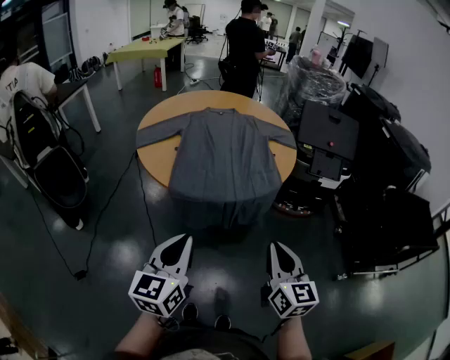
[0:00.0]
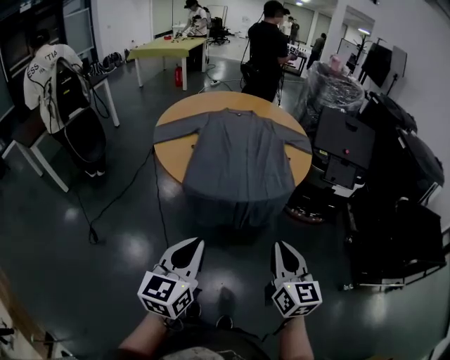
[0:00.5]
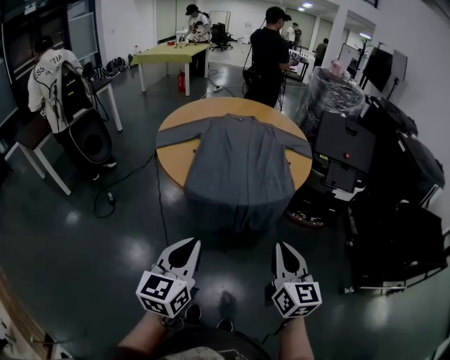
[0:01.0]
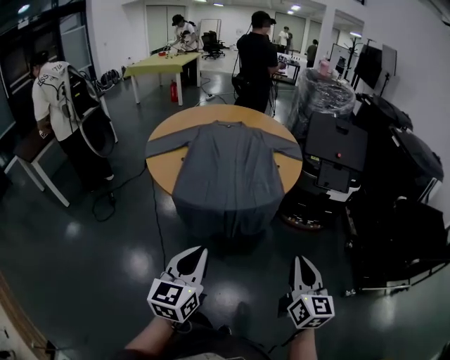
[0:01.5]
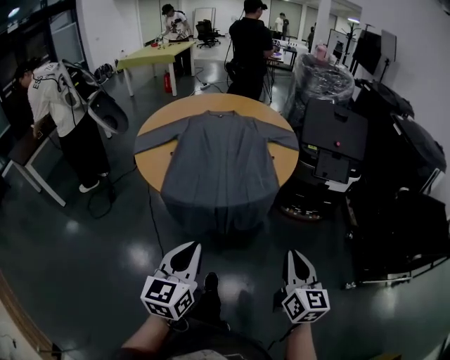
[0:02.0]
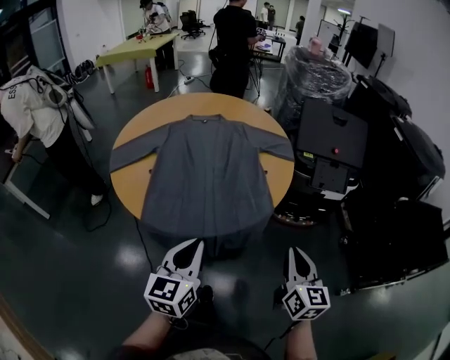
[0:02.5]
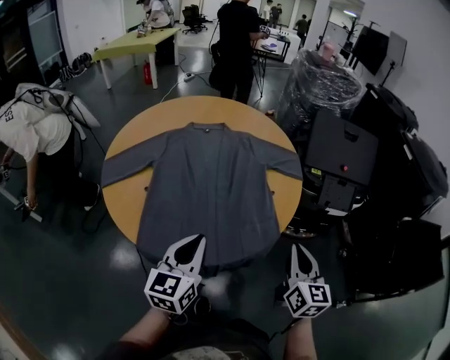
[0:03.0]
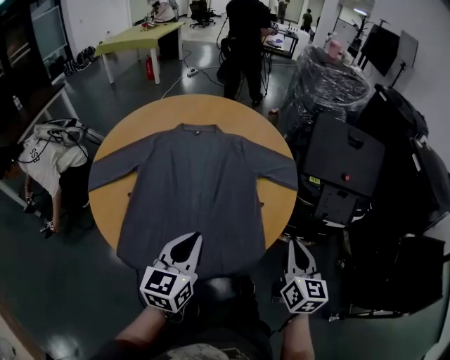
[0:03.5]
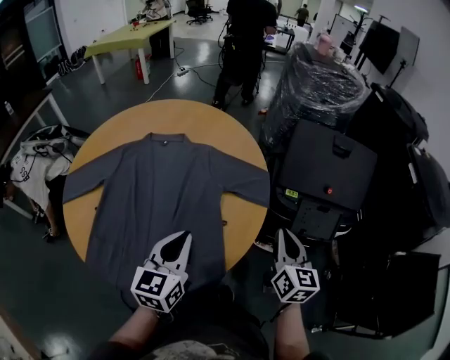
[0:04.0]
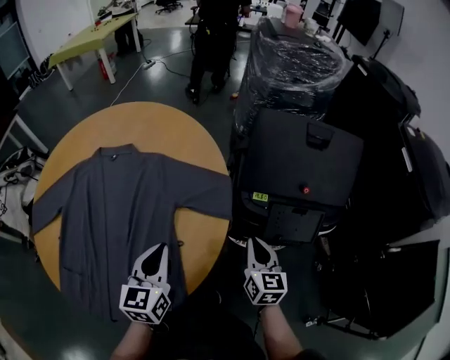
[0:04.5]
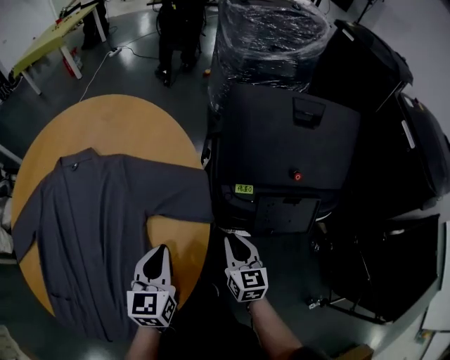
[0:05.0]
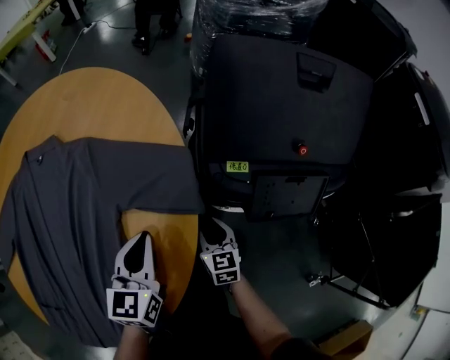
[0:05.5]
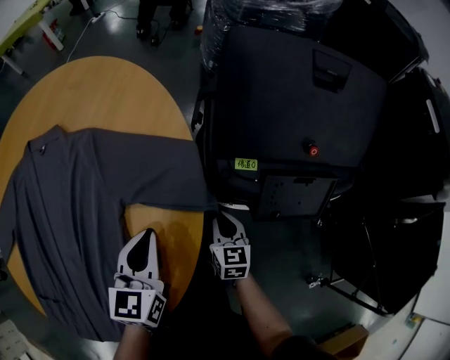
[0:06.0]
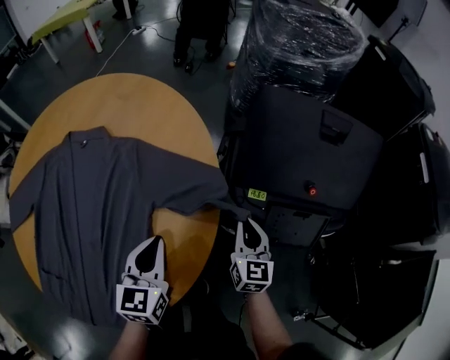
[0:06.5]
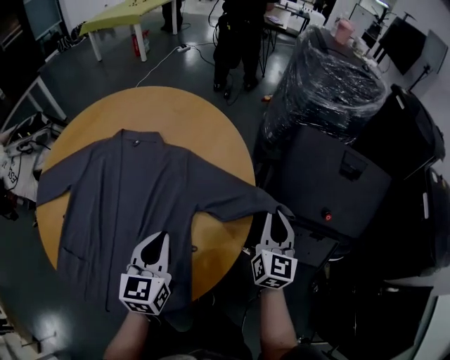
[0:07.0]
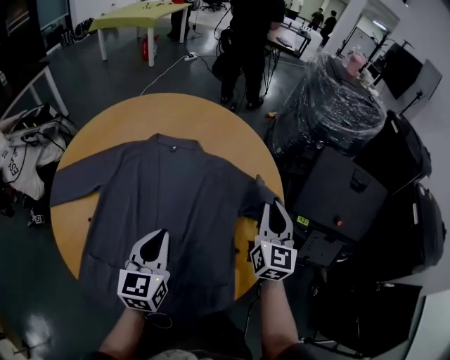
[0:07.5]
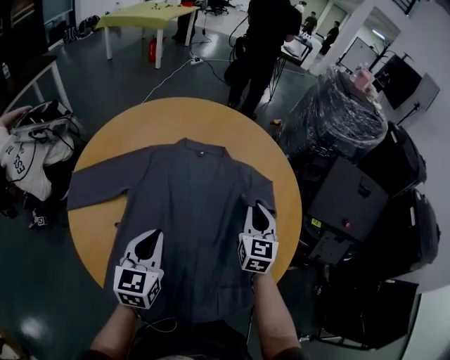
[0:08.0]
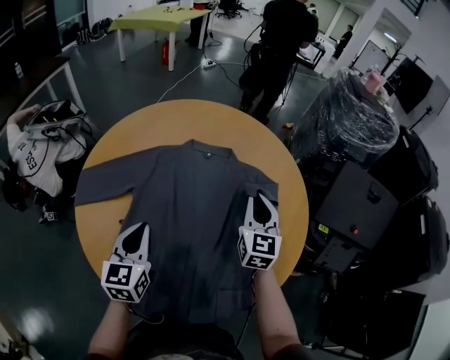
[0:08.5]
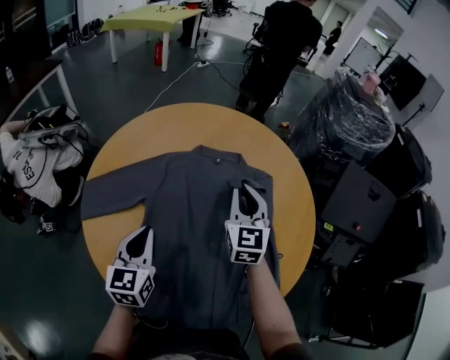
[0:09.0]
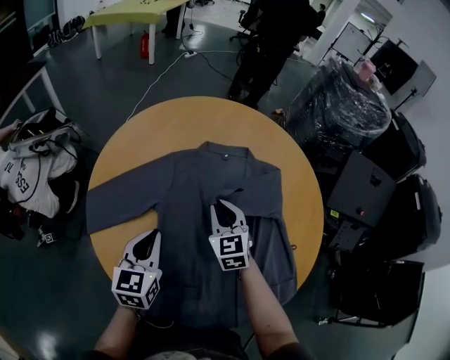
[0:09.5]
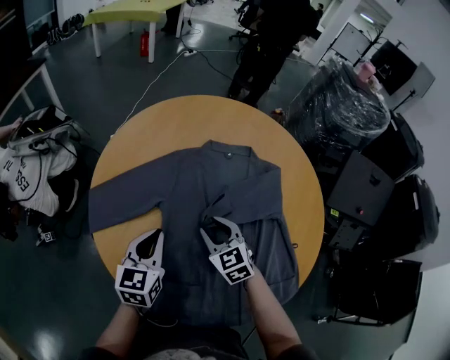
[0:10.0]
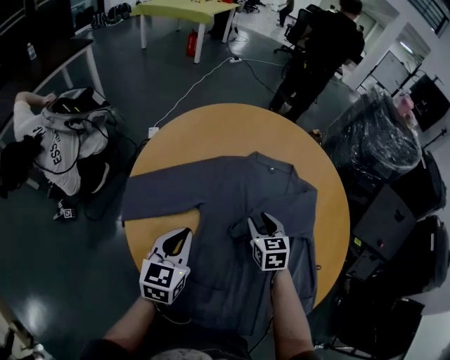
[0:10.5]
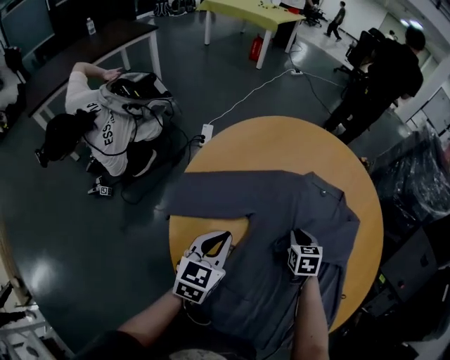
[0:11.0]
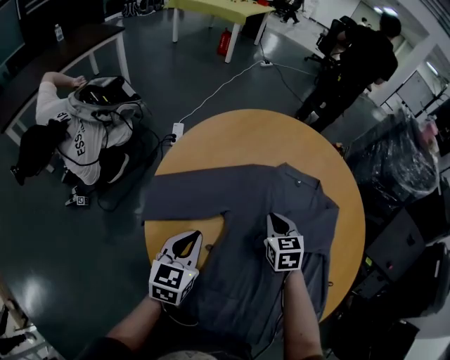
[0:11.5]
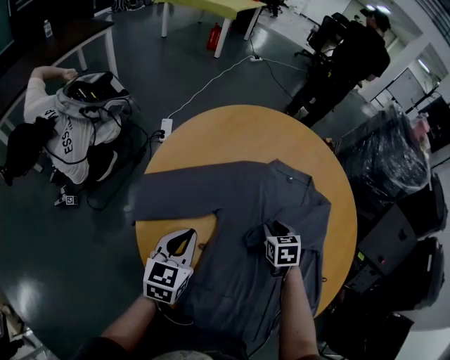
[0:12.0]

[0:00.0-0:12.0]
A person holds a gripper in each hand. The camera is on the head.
0:00.0 to 0:02.0: Both grippers move to the right, roughly 10 cm.
0:02.0 to 0:04.0: The pair of grippers is taken forward, roughly 50 cm.
0:04.0 to 0:06.0: The left gripper travels forward, downward and to the right by about 30 cm. Meanwhile the right gripper heads downward and forward, covering approximately 35 cm, turns by about 20 degrees, and opens, then closes once more.
0:06.0 to 0:08.0: The left gripper goes about 40 cm to the left. Meanwhile the right gripper is displaced to the left and upward by some 40 cm, and turns by about 30 degrees.
0:08.0 to 0:10.0: The right gripper goes approximately 25 cm to the left, changes its angle by approximately 30 degrees, and opens up. Meanwhile the left gripper heads to the left, covering approximately 15 cm.
0:10.0 to 0:12.0: The left gripper heads to the left, covering about 10 cm. The right gripper heads forward and downward, covering some 10 cm, swivels roughly 30 degrees, and closes, then opens again.

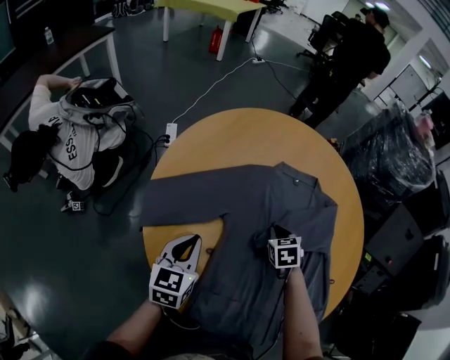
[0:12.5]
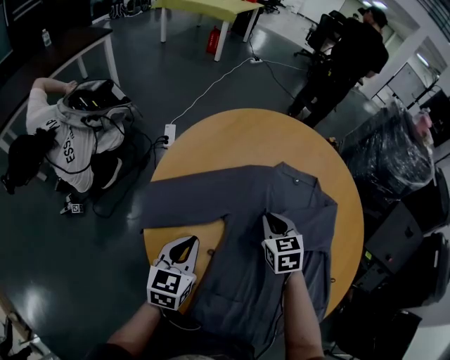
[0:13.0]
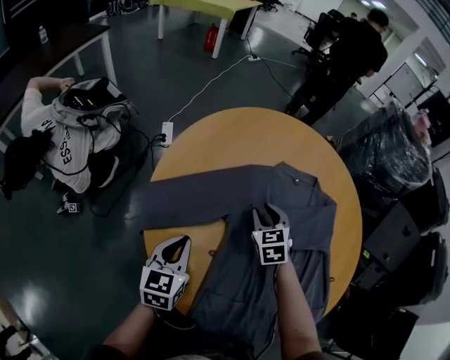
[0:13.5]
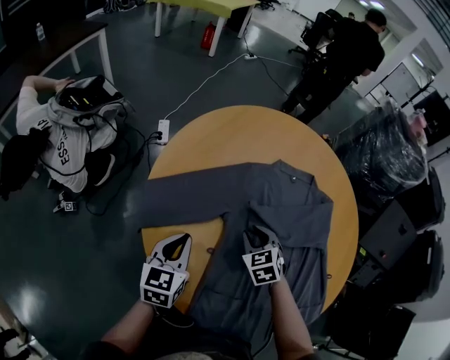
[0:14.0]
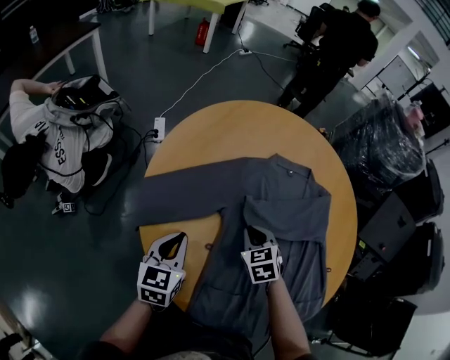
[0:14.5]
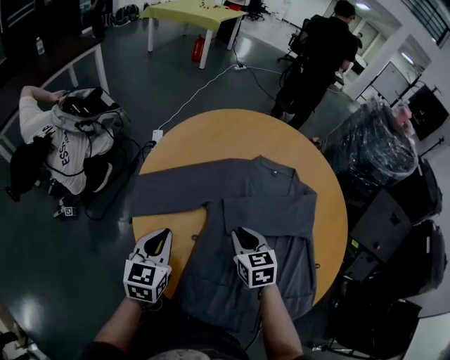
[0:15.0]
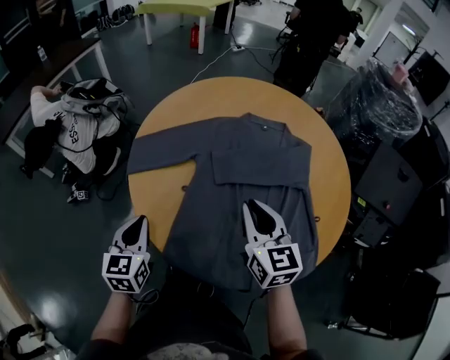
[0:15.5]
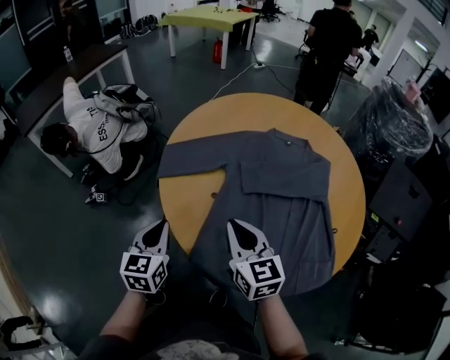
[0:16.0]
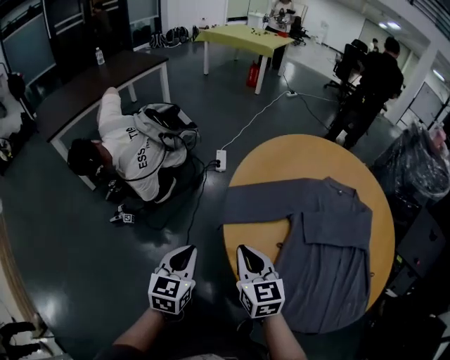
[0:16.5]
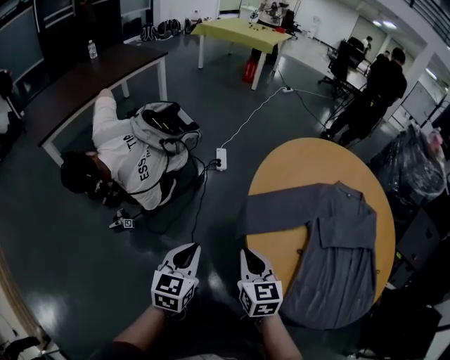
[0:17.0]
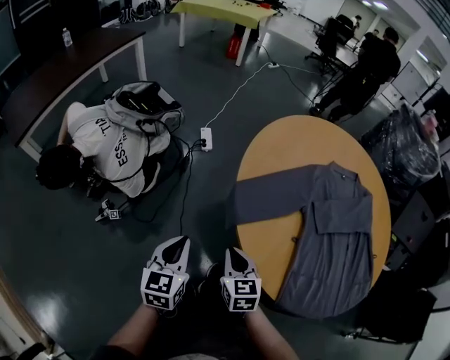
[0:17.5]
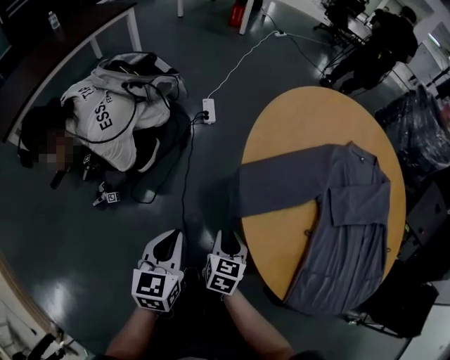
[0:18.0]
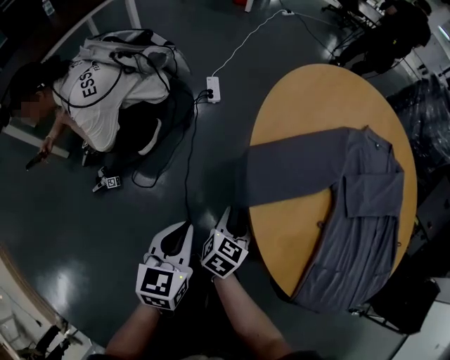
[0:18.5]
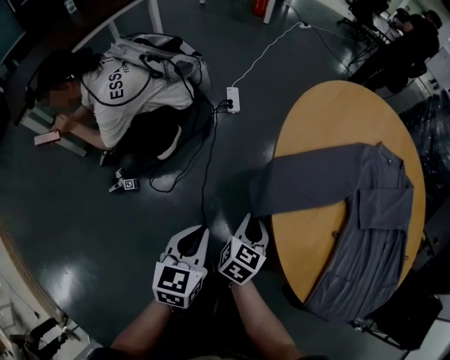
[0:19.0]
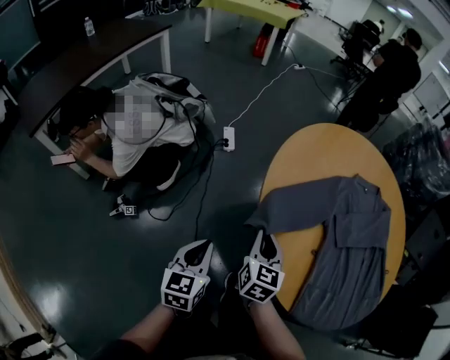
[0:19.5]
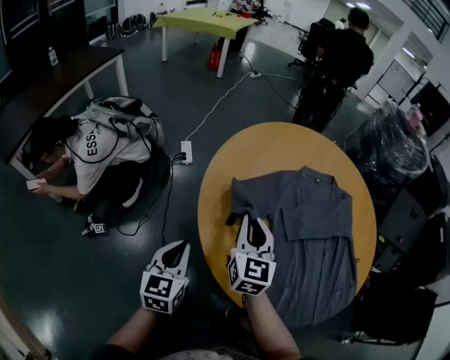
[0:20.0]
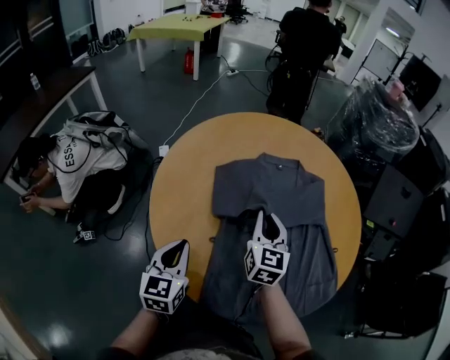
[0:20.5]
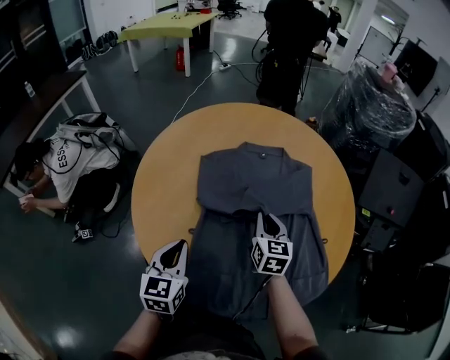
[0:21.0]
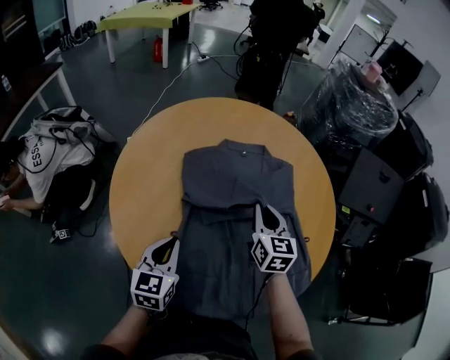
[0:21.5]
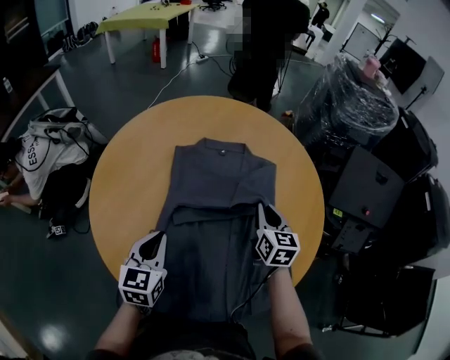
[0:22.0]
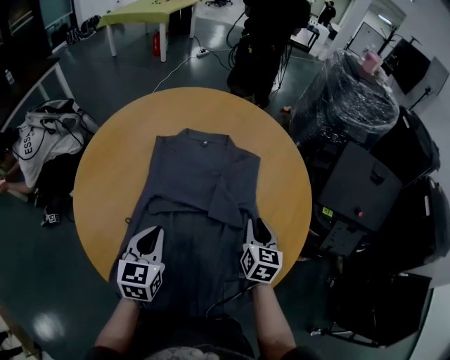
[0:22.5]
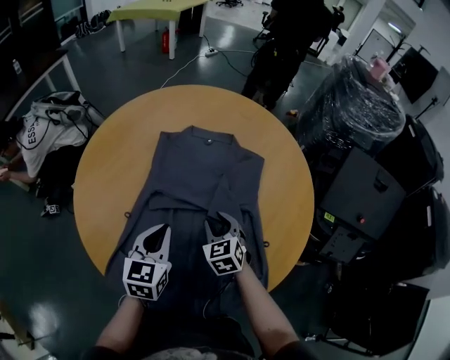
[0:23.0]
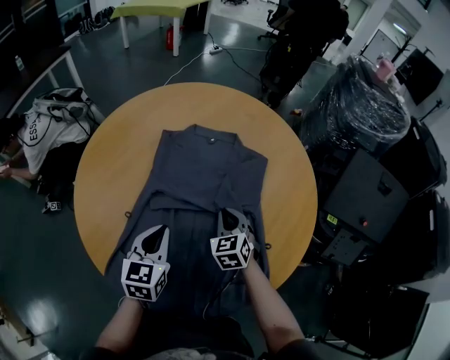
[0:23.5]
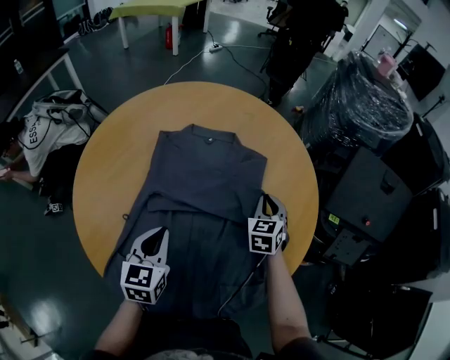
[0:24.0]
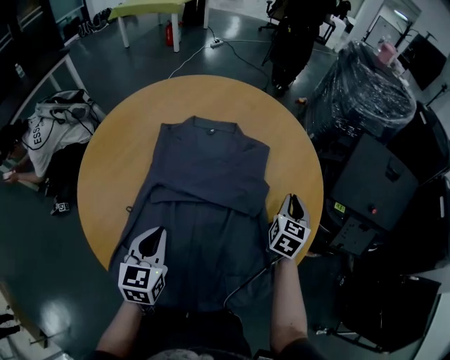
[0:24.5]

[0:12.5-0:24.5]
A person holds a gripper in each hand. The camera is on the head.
0:12.5 to 0:14.5: The right gripper heads to the left and backward, covering about 10 cm.
0:14.5 to 0:16.5: The left gripper goes about 25 cm to the left and backward. The right gripper goes some 35 cm to the left, backward and upward, and changes its angle by approximately 30 degrees.
0:16.5 to 0:18.5: The left gripper shifts by about 15 cm. The right gripper moves downward, roughly 25 cm, rotates approximately 50 degrees, and opens up.
0:18.5 to 0:20.5: The two grippers go roughly 40 cm to the right and upward. The right gripper turns by about 30 degrees.
0:20.5 to 0:22.5: The two grippers go approximately 30 cm to the right.
0:22.5 to 0:24.5: The right gripper travels to the right and forward by some 10 cm.

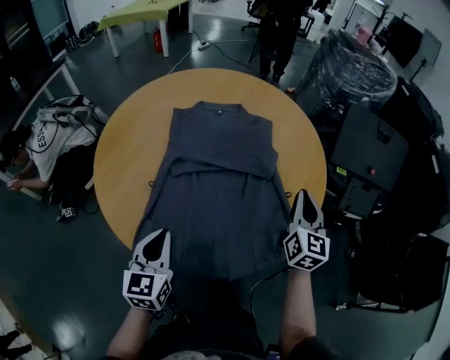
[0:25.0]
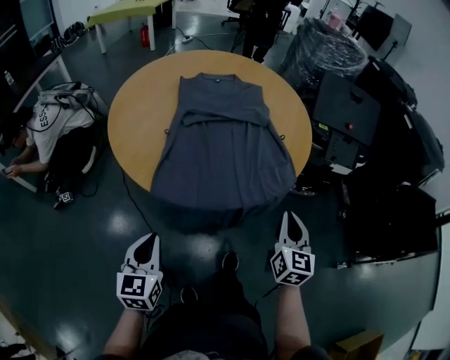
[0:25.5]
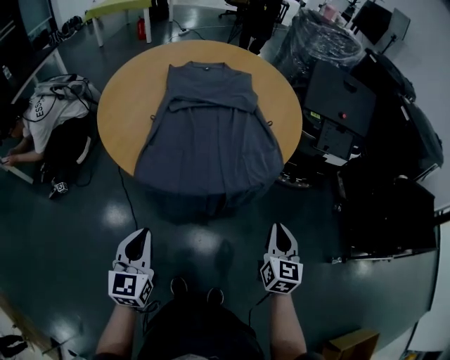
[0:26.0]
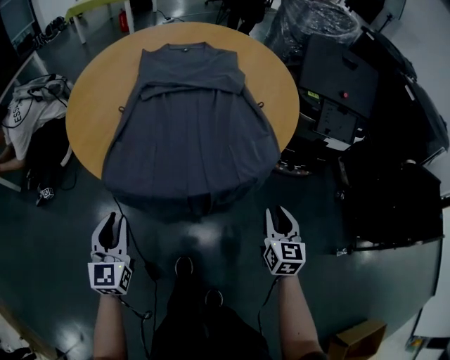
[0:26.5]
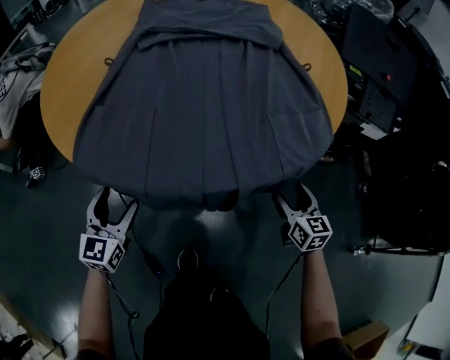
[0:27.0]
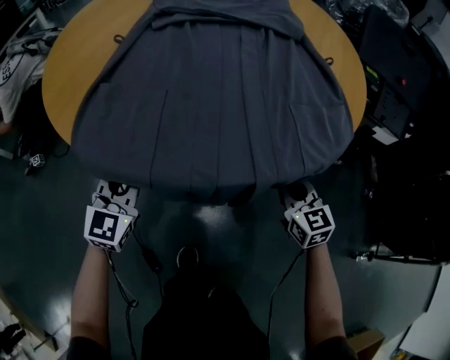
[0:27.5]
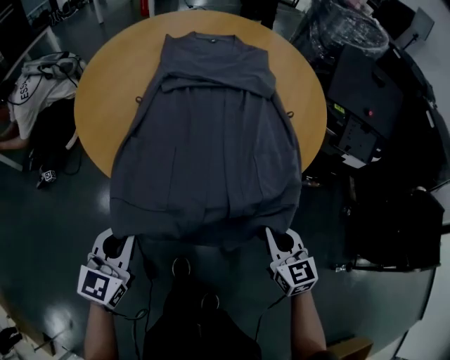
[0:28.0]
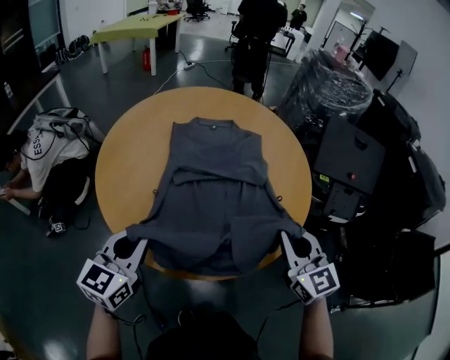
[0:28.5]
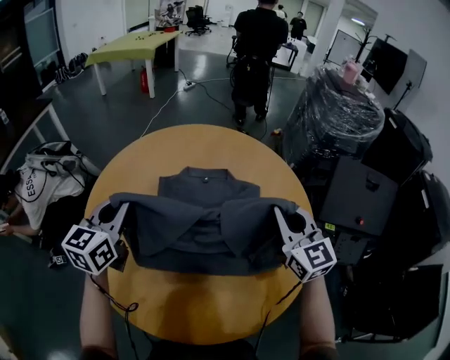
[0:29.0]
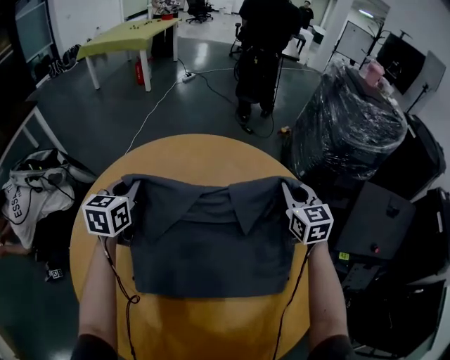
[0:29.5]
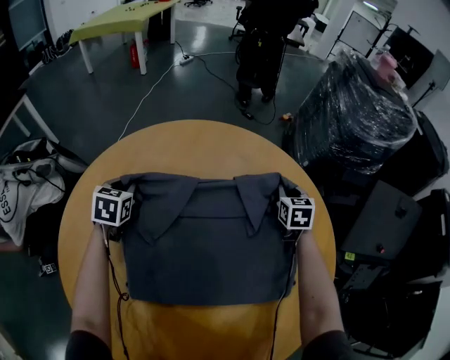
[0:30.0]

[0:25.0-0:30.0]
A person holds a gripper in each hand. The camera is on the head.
0:25.0 to 0:27.5: The right gripper is displaced downward and backward by approximately 40 cm, turns by approximately 30 degrees, and opens, then closes again; the left gripper travels downward by roughly 30 cm, changes its angle by about 20 degrees, and opens and closes again.
0:27.5 to 0:30.0: The two grippers travel together, forward, approximately 70 cm. The right gripper turns by roughly 20 degrees; the left gripper swivels roughly 30 degrees.
